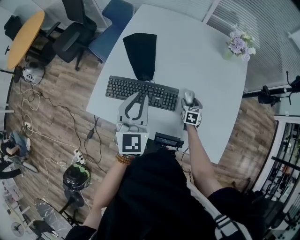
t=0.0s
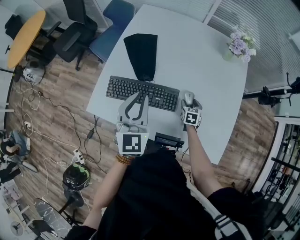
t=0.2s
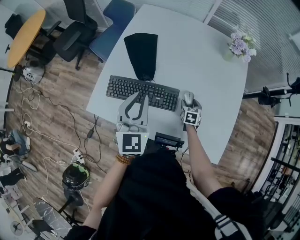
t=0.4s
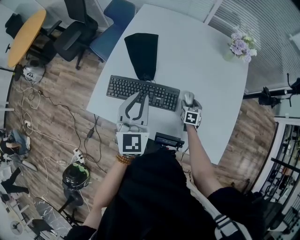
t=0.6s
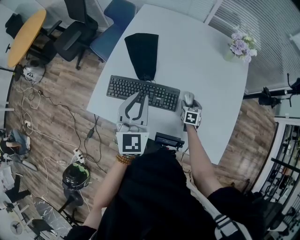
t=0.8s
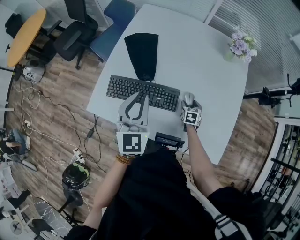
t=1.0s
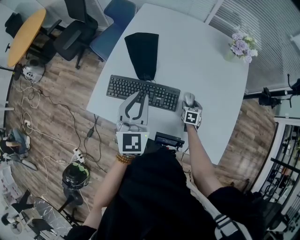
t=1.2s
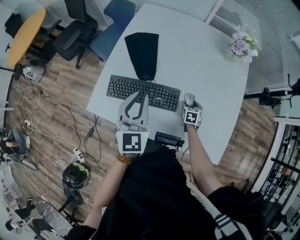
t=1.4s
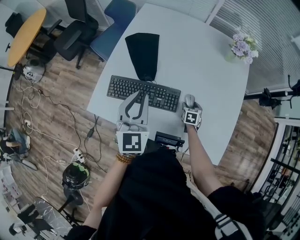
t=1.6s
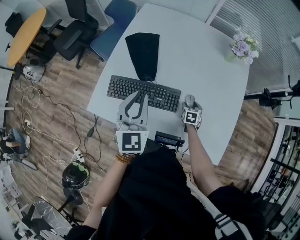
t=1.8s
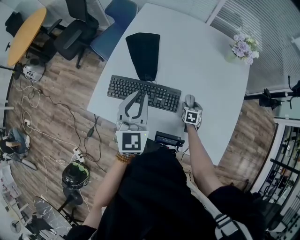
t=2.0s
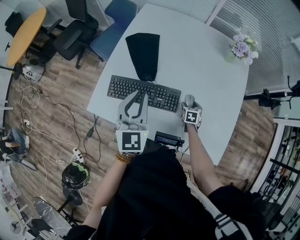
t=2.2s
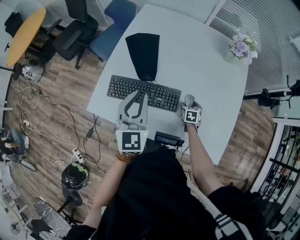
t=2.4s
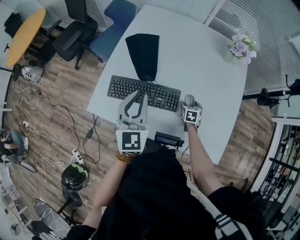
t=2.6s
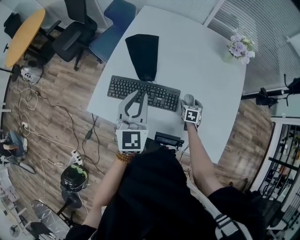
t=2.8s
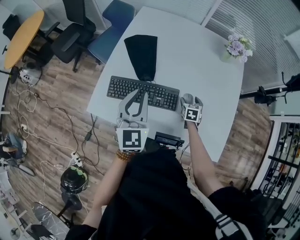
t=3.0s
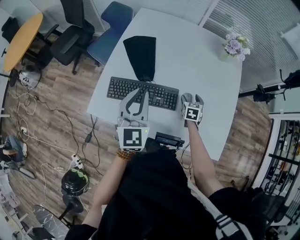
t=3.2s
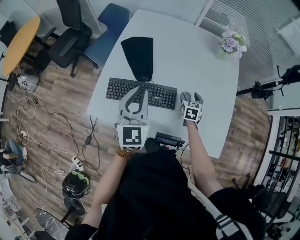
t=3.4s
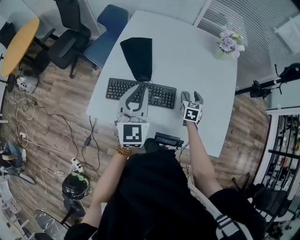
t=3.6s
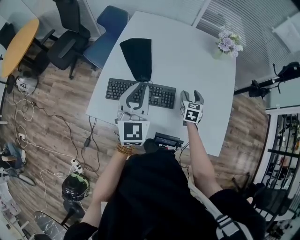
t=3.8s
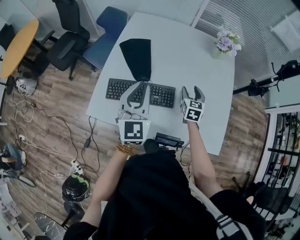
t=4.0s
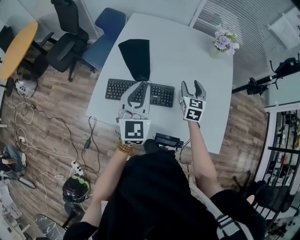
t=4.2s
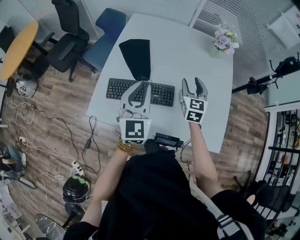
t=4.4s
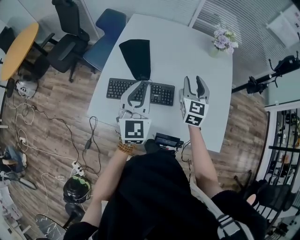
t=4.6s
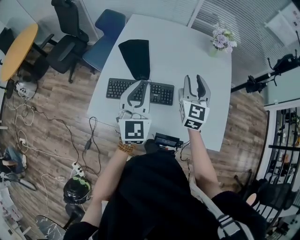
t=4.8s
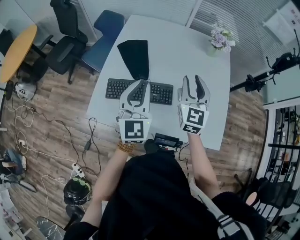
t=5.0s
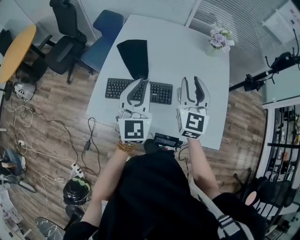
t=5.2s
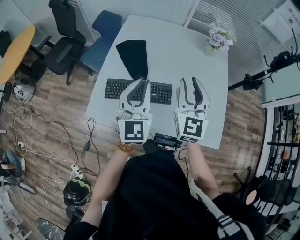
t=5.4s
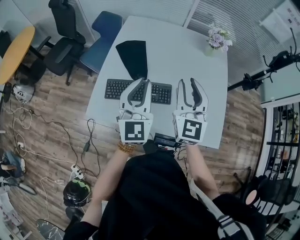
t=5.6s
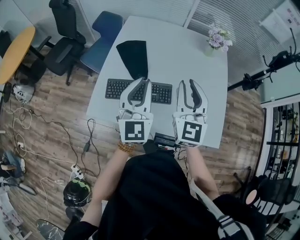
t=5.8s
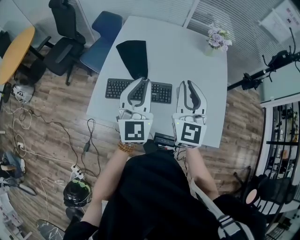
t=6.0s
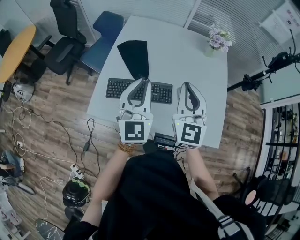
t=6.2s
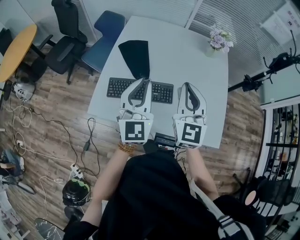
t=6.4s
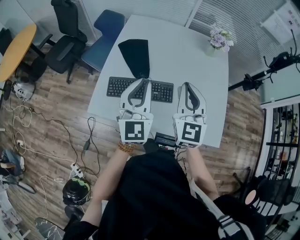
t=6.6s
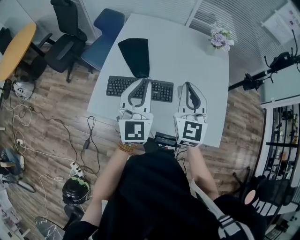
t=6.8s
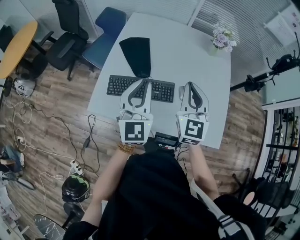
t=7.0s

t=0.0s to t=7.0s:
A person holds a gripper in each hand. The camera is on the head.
t=0.0s to t=2.8s: The grippers stay close to where they were, moving slightly.
t=2.8s to t=4.2s: The right gripper moves upward, approximately 25 cm, and turns by about 30 degrees.
t=4.2s to t=5.6s: The right gripper heads upward and backward, covering some 20 cm, and changes its angle by approximately 20 degrees, while the left gripper shifts approximately 5 cm upward.
t=5.6s to t=7.0s: There are only small adjustments of the grippers.

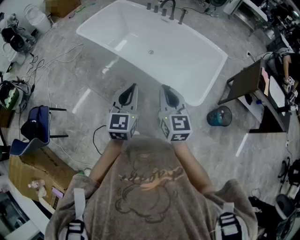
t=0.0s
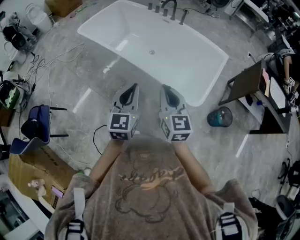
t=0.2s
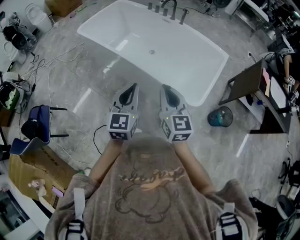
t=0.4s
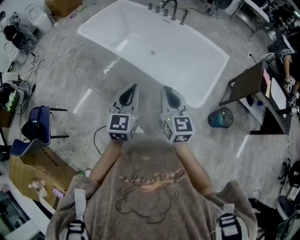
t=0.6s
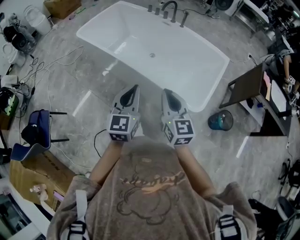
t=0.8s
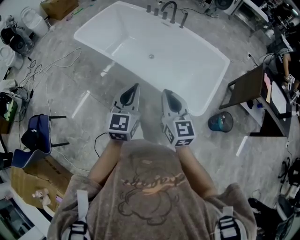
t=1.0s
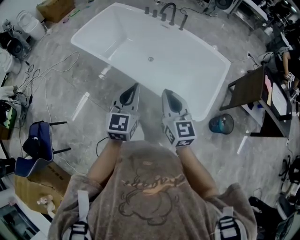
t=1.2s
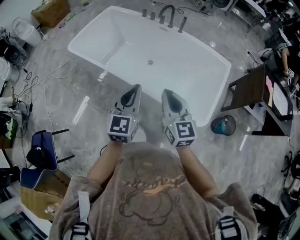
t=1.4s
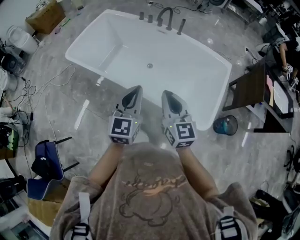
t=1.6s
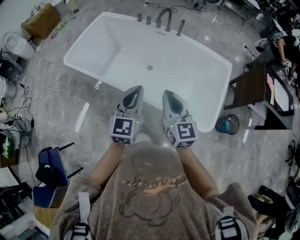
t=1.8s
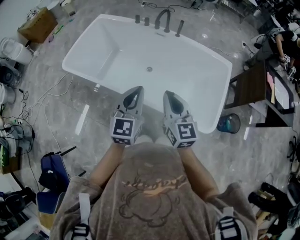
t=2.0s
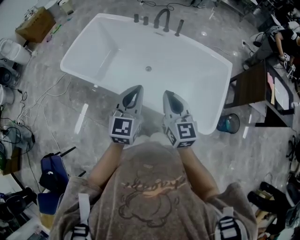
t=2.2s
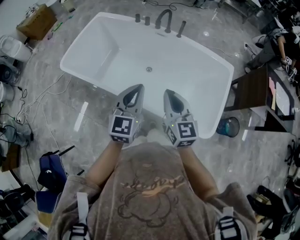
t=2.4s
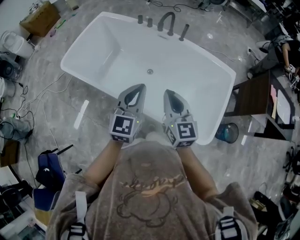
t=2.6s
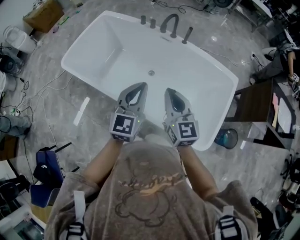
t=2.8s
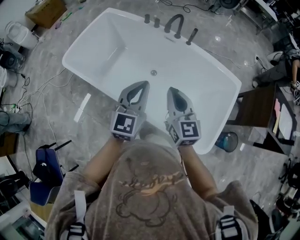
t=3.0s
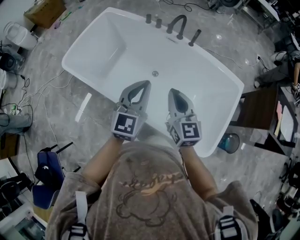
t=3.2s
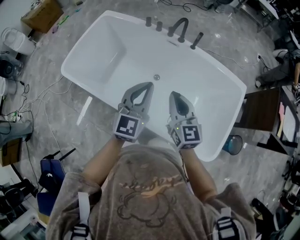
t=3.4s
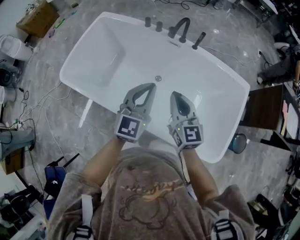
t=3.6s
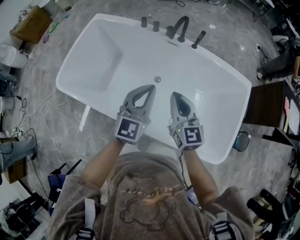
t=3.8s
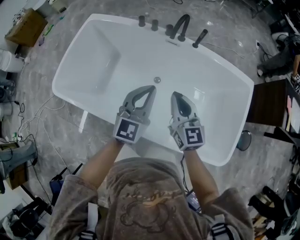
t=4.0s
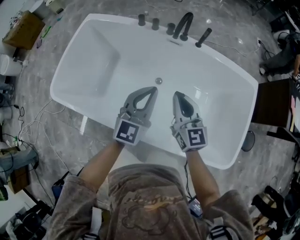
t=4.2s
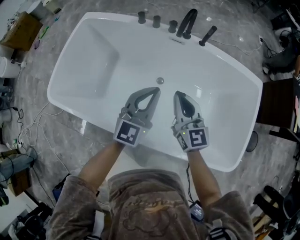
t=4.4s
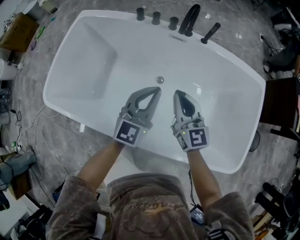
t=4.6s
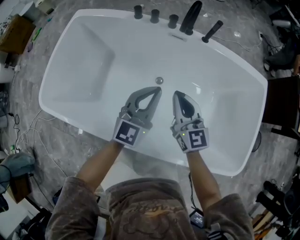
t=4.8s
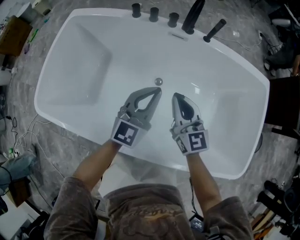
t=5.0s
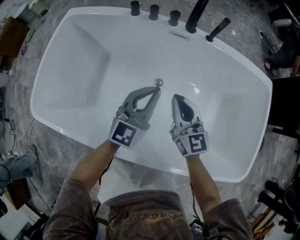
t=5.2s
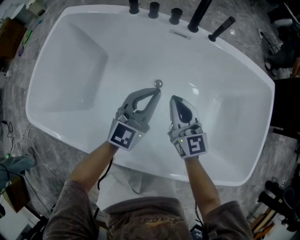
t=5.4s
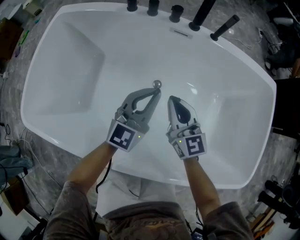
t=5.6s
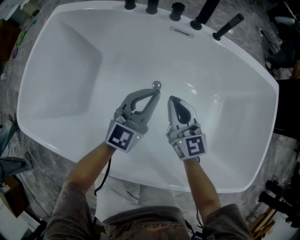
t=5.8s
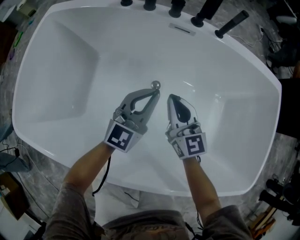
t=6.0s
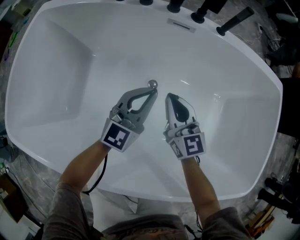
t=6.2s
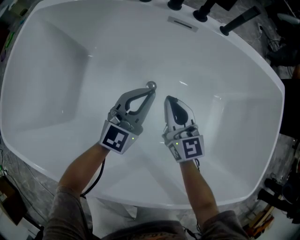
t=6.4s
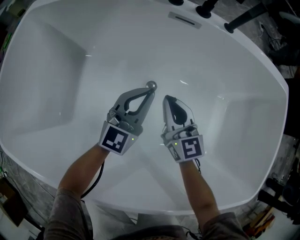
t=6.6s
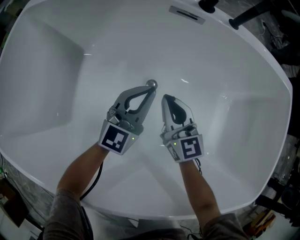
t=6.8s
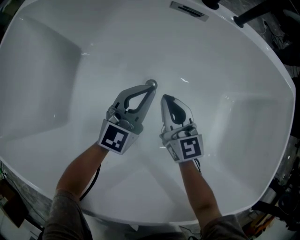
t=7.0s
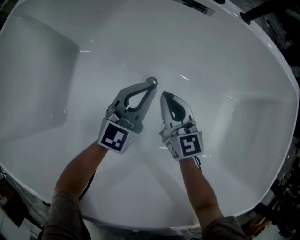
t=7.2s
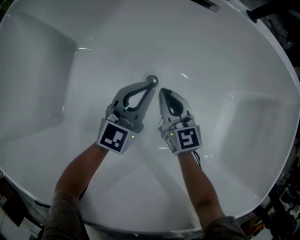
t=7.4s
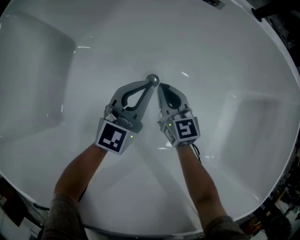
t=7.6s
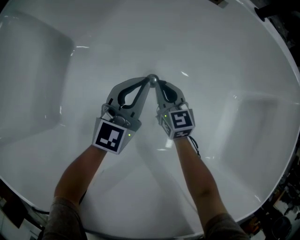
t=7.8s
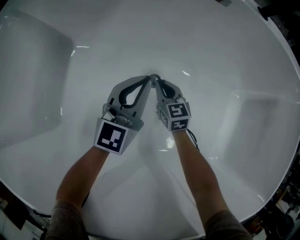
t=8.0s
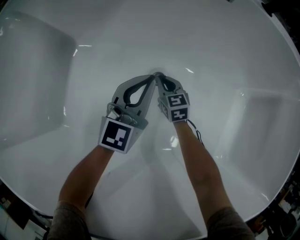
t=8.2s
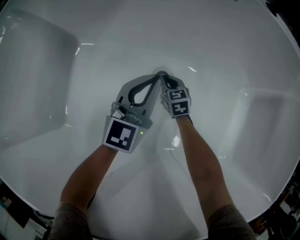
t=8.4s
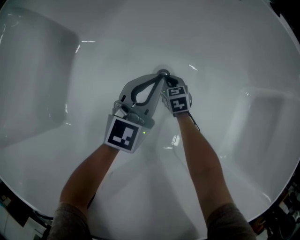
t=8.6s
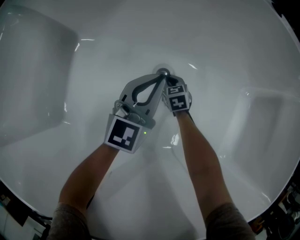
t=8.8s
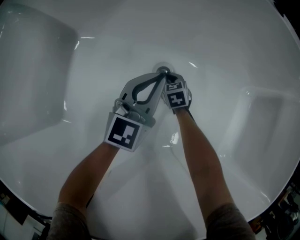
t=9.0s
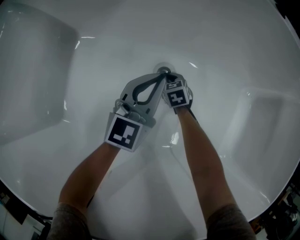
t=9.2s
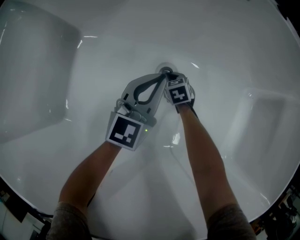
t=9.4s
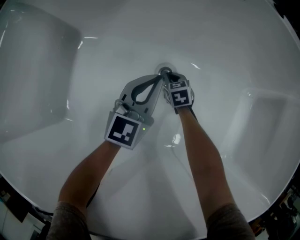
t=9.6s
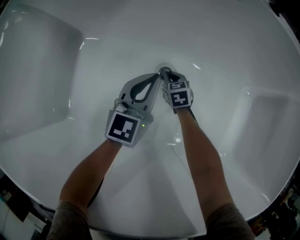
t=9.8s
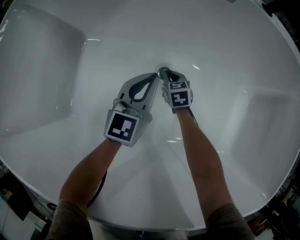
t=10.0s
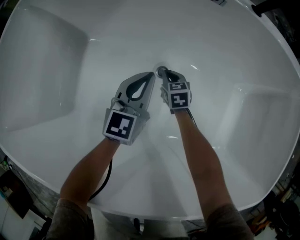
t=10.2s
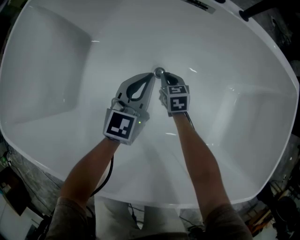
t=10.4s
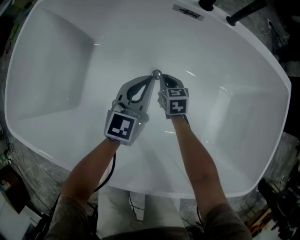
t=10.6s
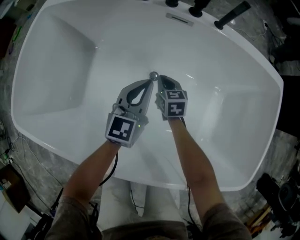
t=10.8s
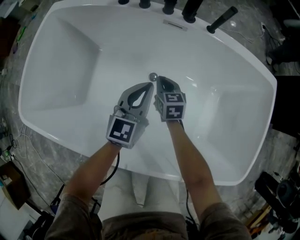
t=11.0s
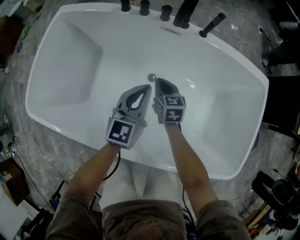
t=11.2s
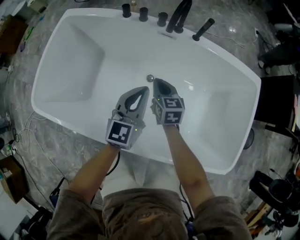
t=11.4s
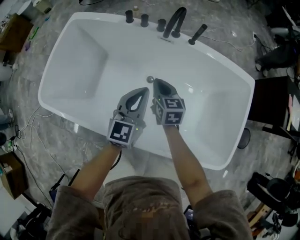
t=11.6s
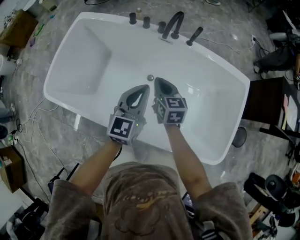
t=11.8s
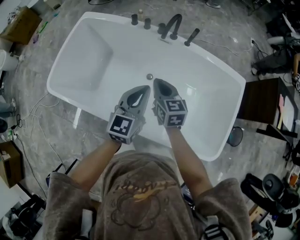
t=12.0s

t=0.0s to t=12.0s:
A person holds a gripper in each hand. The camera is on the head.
t=0.0s to t=1.6s: Both grippers travel together forward, approximately 25 cm.
t=1.6s to t=3.0s: The two grippers go some 20 cm forward.
t=3.0s to t=4.4s: The left gripper is displaced forward and downward by about 25 cm, and rotates about 20 degrees; the right gripper moves forward, downward and to the left, roughly 25 cm.
t=4.4s to t=6.0s: The grippers both shift downward and forward by approximately 25 cm.
t=6.0s to t=7.6s: The grippers both shift downward by about 20 cm.
t=7.6s to t=9.0s: The right gripper travels downward by about 20 cm, and tilts its fingers approximately 30 degrees downward. Meanwhile the left gripper ends up about 5 cm from where it was.
t=9.0s to t=10.4s: The right gripper shifts roughly 20 cm upward. The left gripper is displaced upward by some 10 cm.
t=10.4s to t=12.0s: The right gripper is displaced upward by some 50 cm, and swivels about 20 degrees. Meanwhile the left gripper is displaced upward and backward by some 50 cm.

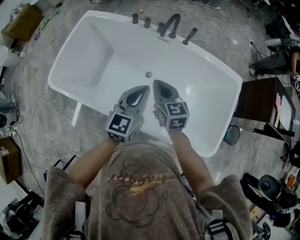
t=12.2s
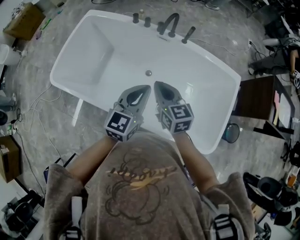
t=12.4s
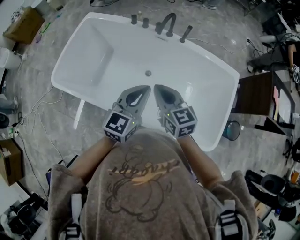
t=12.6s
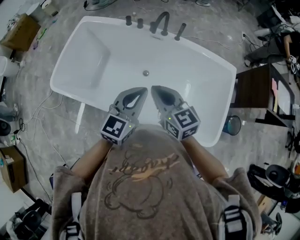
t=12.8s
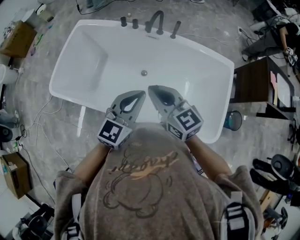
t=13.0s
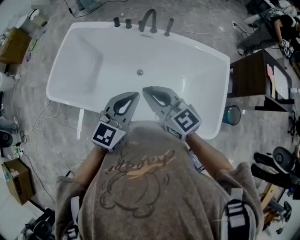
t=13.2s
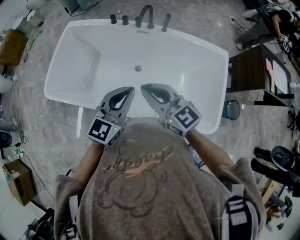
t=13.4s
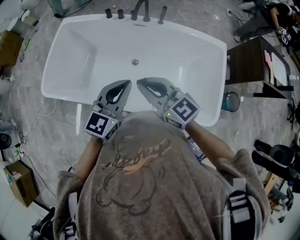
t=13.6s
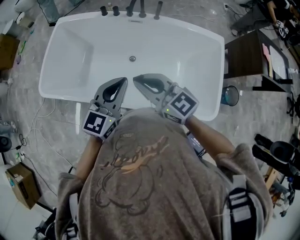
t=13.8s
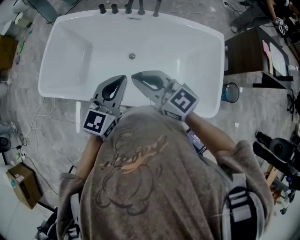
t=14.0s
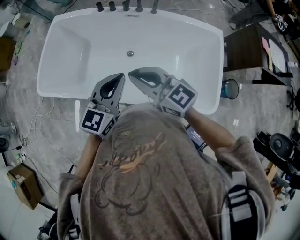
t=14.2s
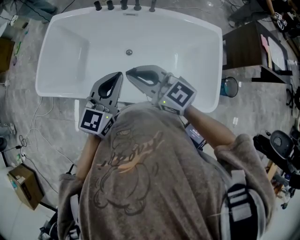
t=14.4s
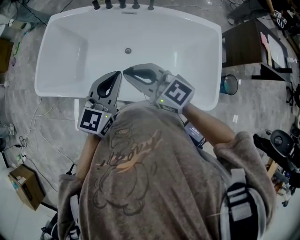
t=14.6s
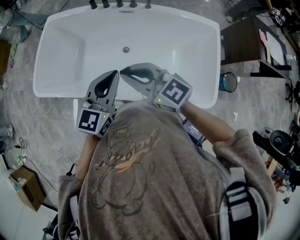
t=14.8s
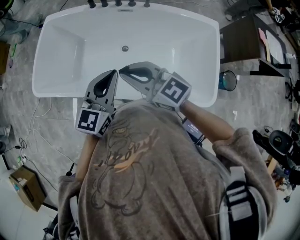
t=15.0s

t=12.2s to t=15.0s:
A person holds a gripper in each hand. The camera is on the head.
t=12.2s to t=13.6s: The left gripper goes roughly 10 cm backward and upward; the right gripper moves backward and upward, about 20 cm, and rotates some 30 degrees.
t=13.6s to t=15.0s: There are only small adjustments of the grippers.

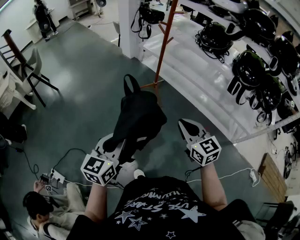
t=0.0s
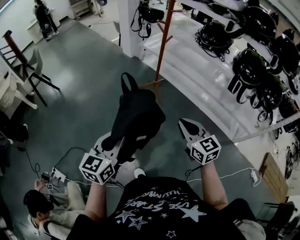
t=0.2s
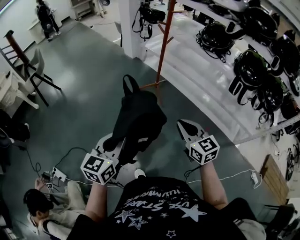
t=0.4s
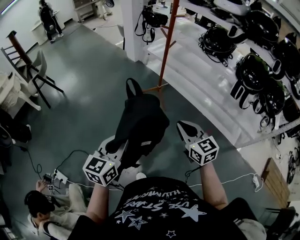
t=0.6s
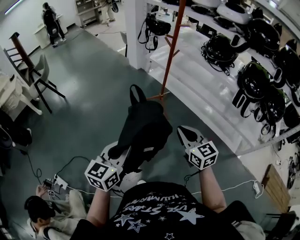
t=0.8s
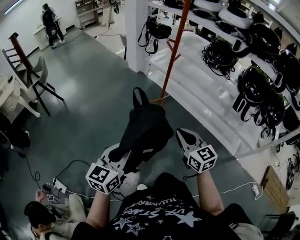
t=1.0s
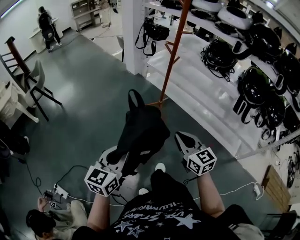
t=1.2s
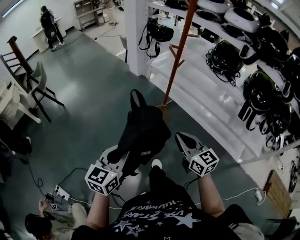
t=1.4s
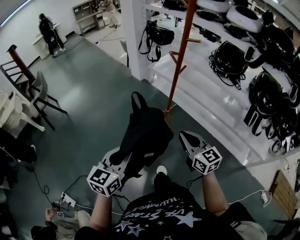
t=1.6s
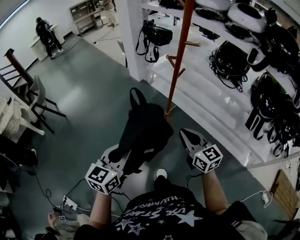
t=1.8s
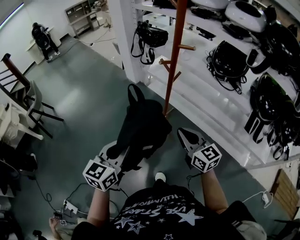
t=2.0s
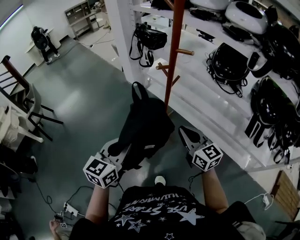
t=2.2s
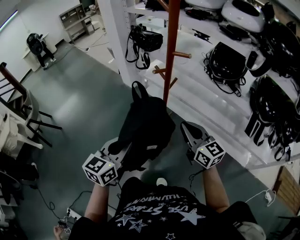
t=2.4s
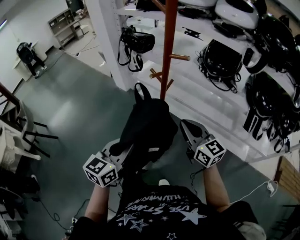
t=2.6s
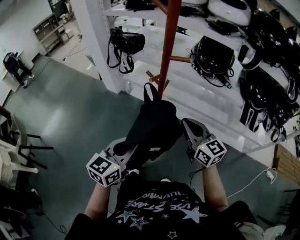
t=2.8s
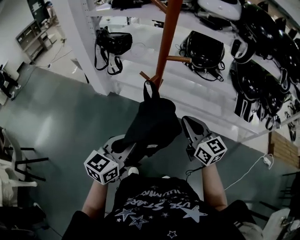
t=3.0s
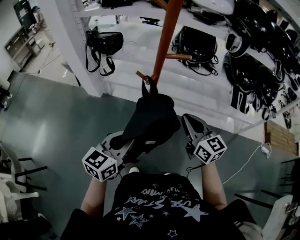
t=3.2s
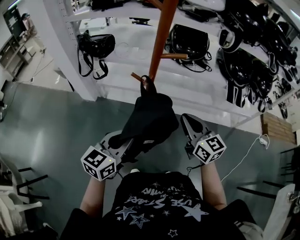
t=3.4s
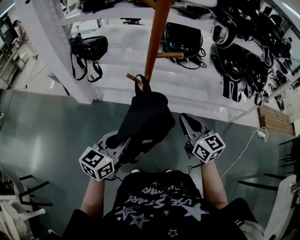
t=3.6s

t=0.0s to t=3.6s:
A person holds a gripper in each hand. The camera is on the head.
t=0.0s to t=1.8s: Both grippers move forward, roughly 30 cm.
t=1.8s to t=3.6s: The right gripper shifts by some 15 cm, and changes its angle by about 40 degrees. Meanwhile the left gripper moves approximately 30 cm, and swivels about 40 degrees.
